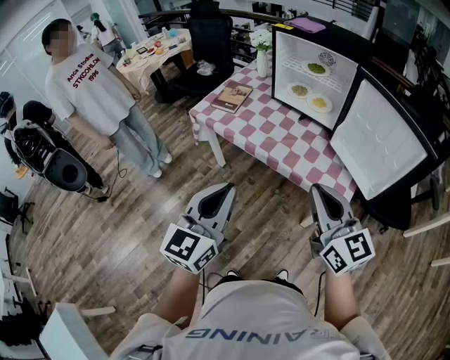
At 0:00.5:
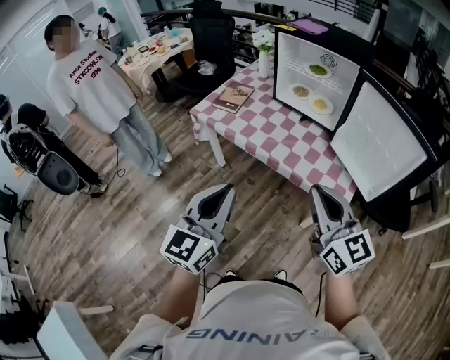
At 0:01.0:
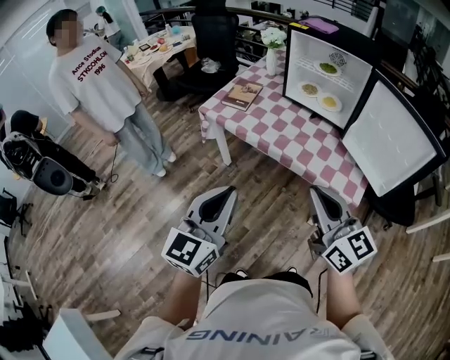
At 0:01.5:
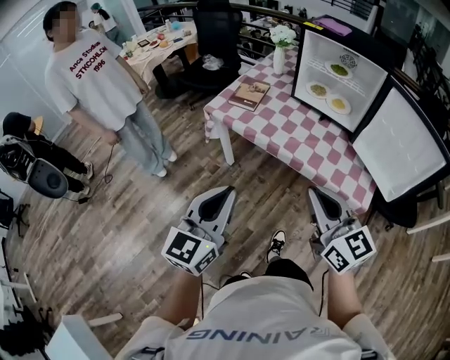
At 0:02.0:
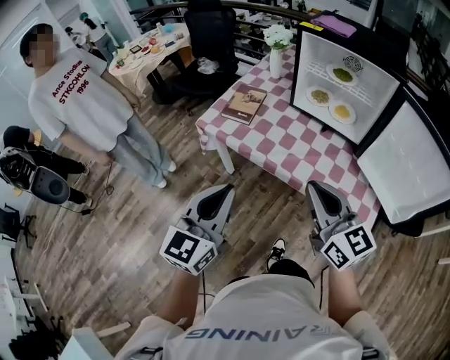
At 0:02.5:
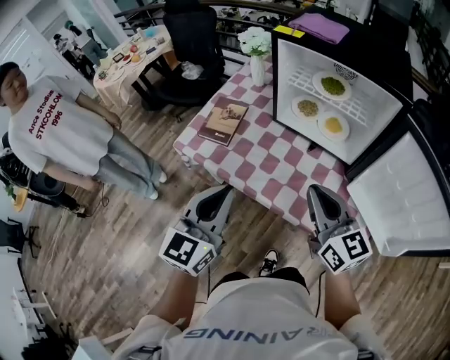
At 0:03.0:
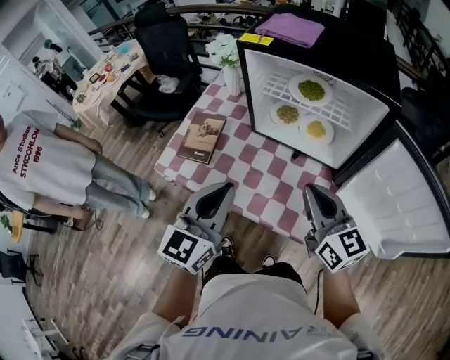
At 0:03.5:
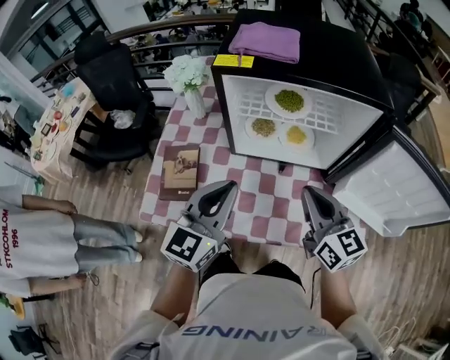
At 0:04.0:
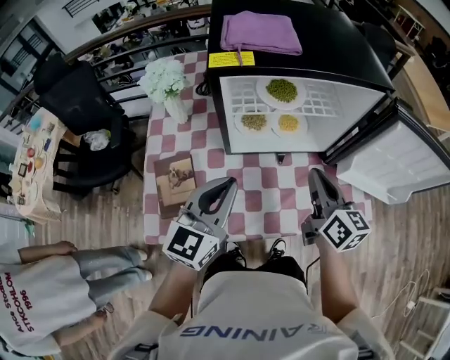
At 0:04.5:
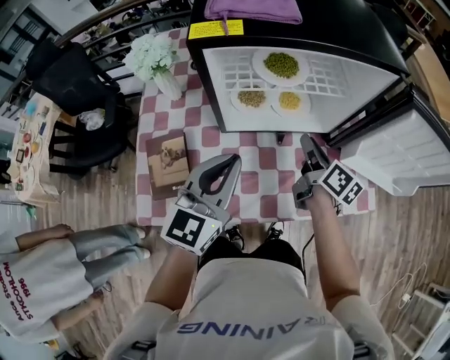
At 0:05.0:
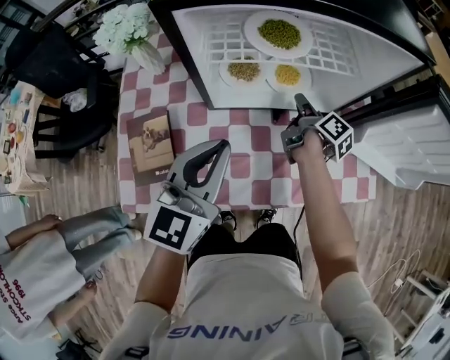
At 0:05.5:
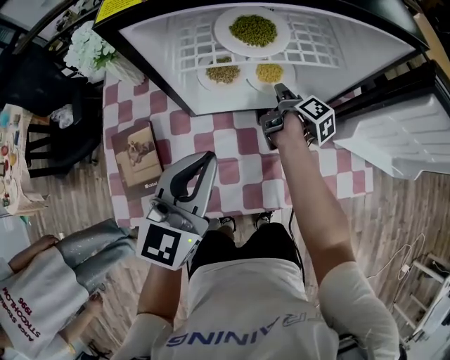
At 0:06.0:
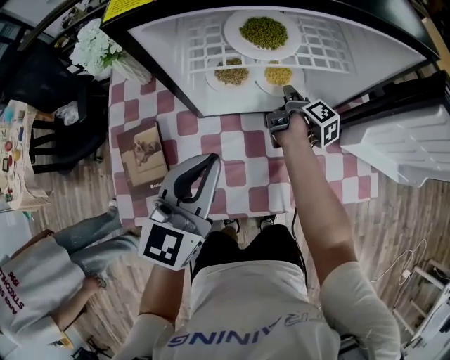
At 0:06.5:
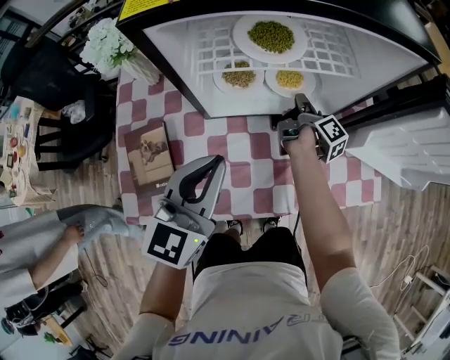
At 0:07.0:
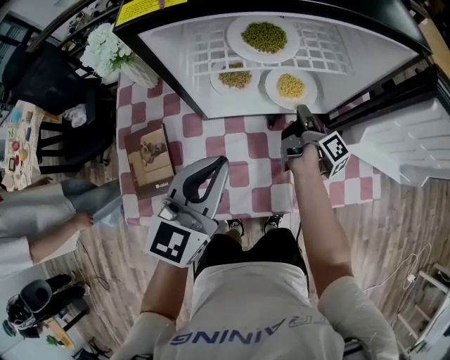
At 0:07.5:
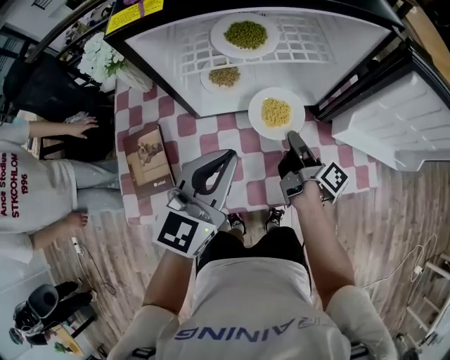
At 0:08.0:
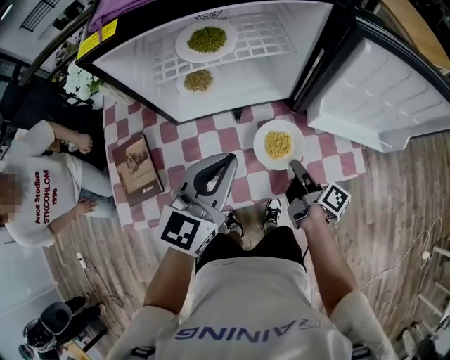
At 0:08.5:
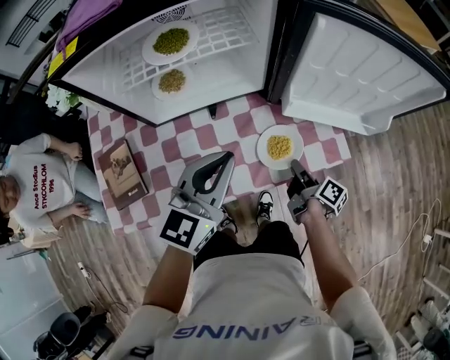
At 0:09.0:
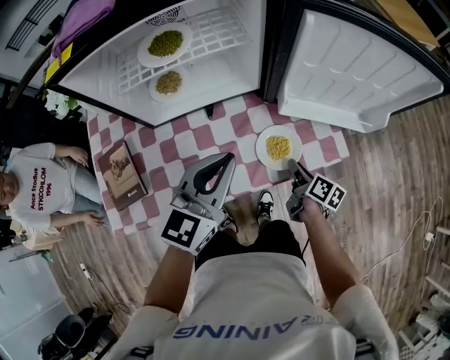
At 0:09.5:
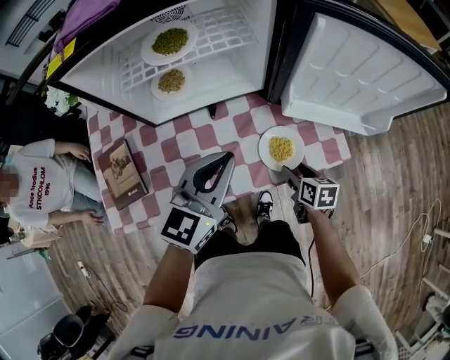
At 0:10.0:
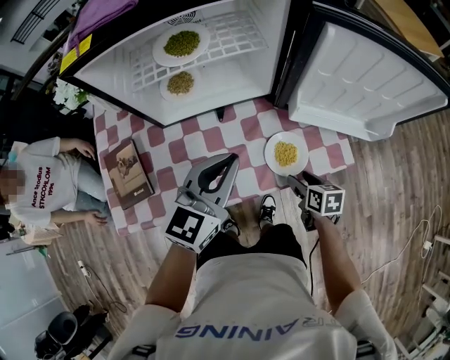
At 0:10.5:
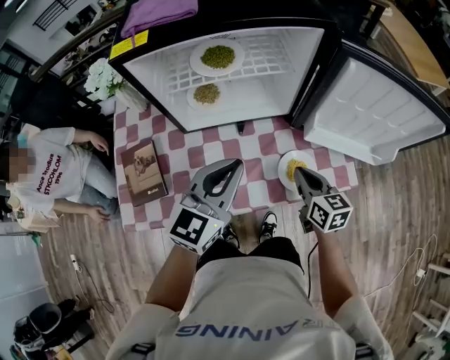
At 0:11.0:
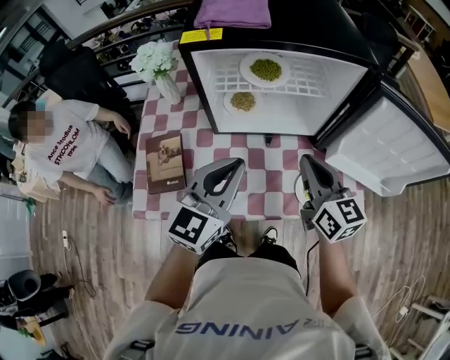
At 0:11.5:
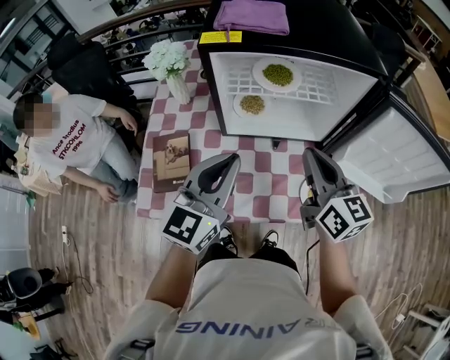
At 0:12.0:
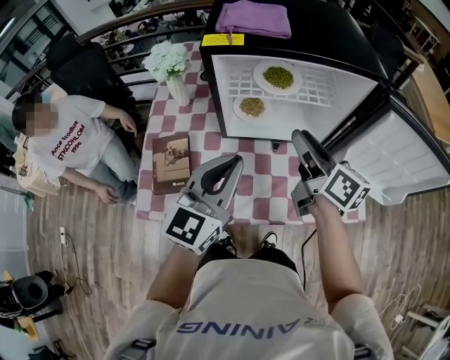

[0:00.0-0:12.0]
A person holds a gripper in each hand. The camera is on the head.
0:00.0 to 0:02.0: The two grippers go about 20 cm forward and to the left.
0:02.0 to 0:04.0: The left gripper shifts by approximately 40 cm, and rotates some 40 degrees. The right gripper ends up approximately 30 cm from where it was, and changes its angle by approximately 60 degrees.
0:04.0 to 0:06.0: The left gripper goes approximately 5 cm downward, while the right gripper goes approximately 30 cm downward and forward, rolls clockwise, seen from behind, by roughly 60 degrees, and opens its fingers.
0:06.0 to 0:08.0: The left gripper is displaced to the right by roughly 10 cm. Meanwhile the right gripper shifts roughly 25 cm backward and to the right, and closes up.
0:08.0 to 0:10.0: The right gripper goes roughly 10 cm downward, to the right and backward, angles its fingers downward, by roughly 30 degrees, and opens. The left gripper moves to the right, roughly 5 cm.
0:10.0 to 0:12.0: The left gripper shifts approximately 20 cm to the left and upward, and rotates roughly 20 degrees. The right gripper is displaced upward, to the left and forward by roughly 40 cm, tips its fingers upward by about 40 degrees, and closes its fingers.

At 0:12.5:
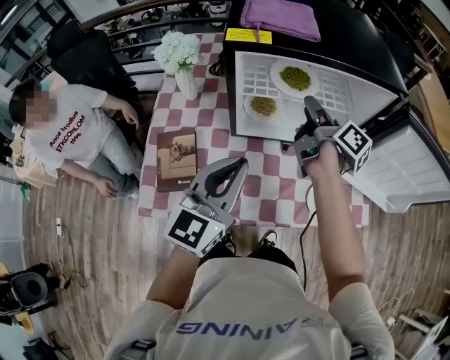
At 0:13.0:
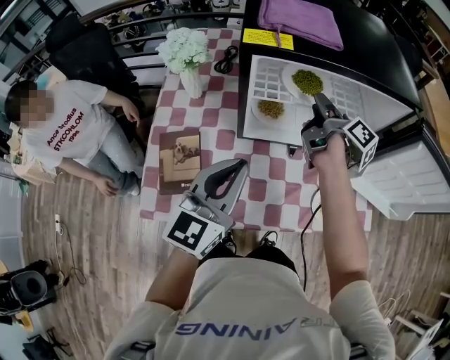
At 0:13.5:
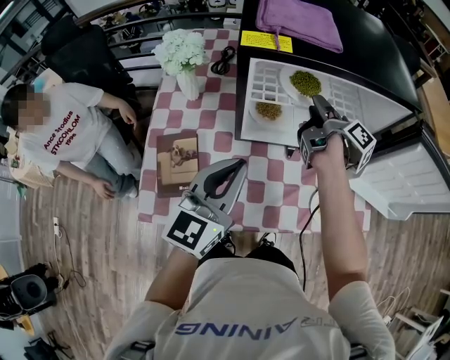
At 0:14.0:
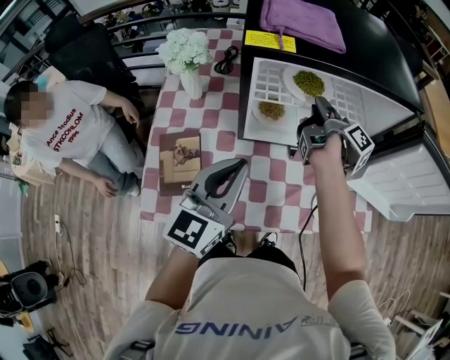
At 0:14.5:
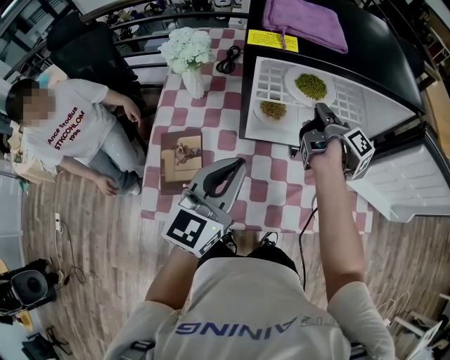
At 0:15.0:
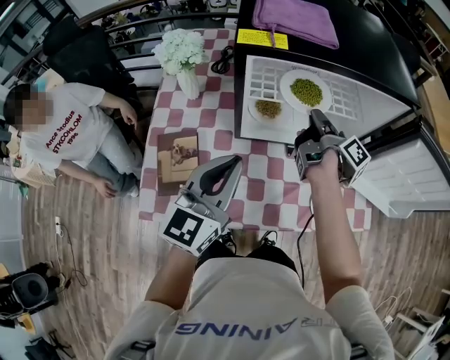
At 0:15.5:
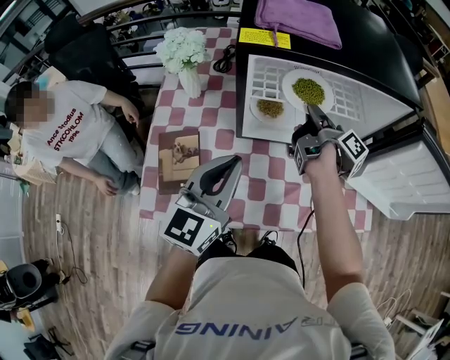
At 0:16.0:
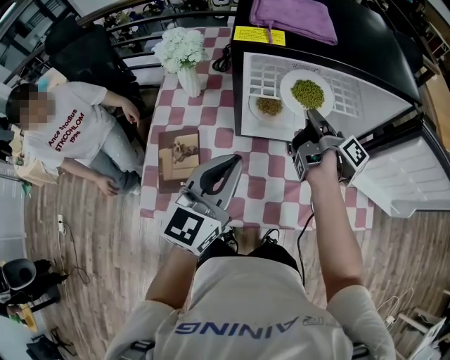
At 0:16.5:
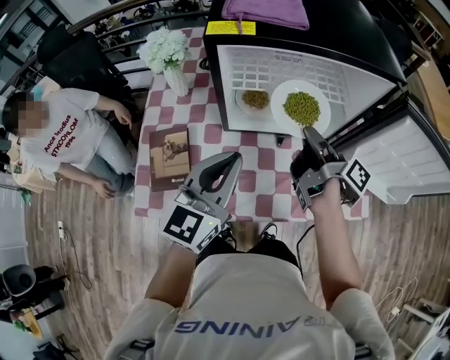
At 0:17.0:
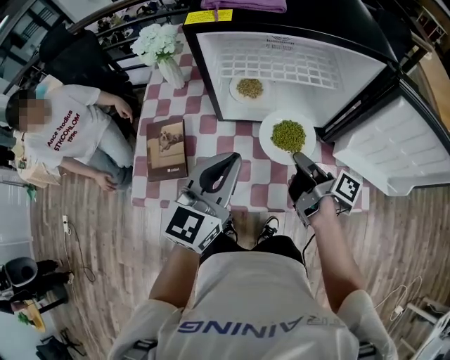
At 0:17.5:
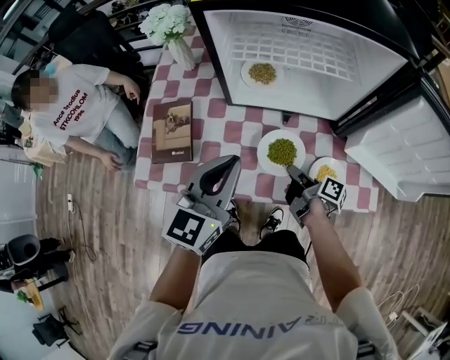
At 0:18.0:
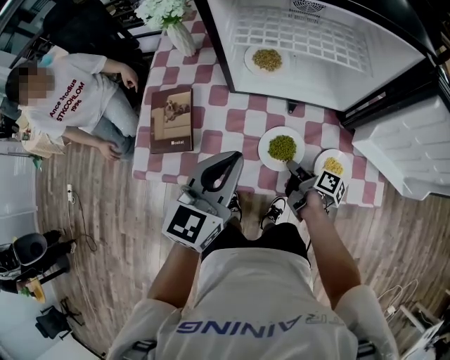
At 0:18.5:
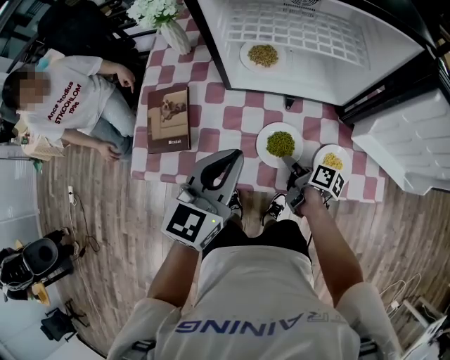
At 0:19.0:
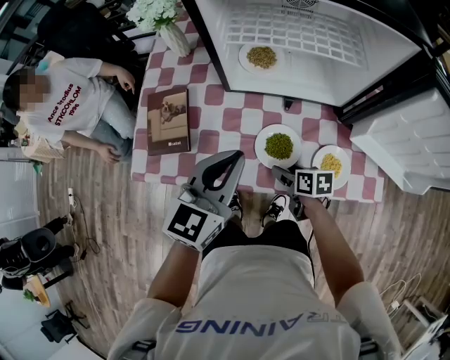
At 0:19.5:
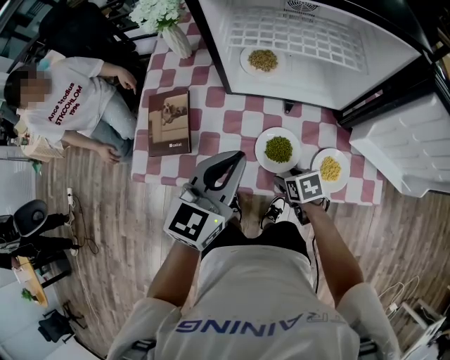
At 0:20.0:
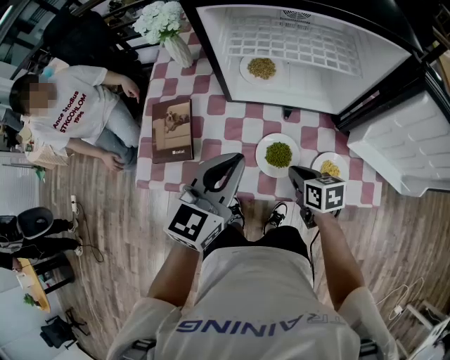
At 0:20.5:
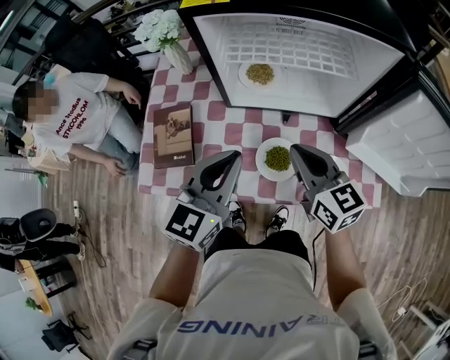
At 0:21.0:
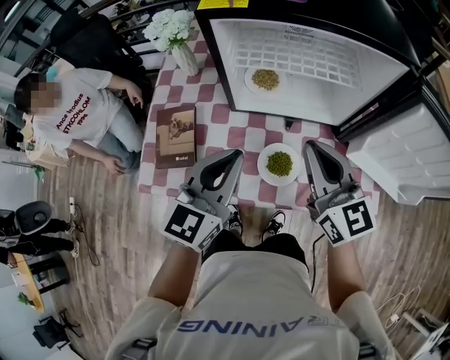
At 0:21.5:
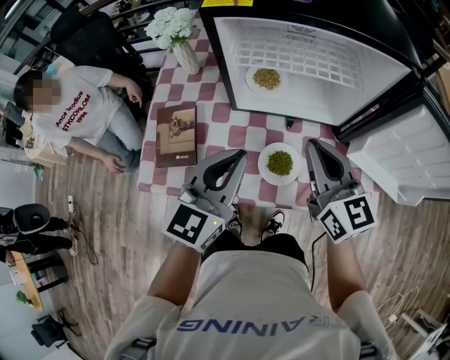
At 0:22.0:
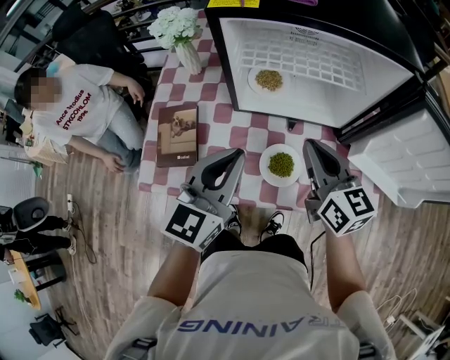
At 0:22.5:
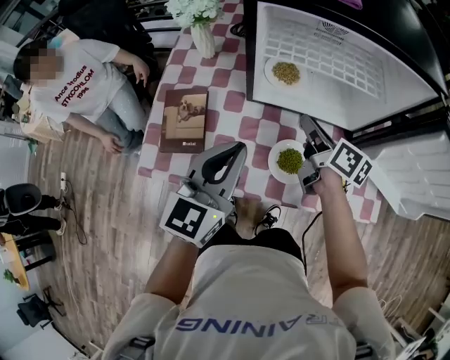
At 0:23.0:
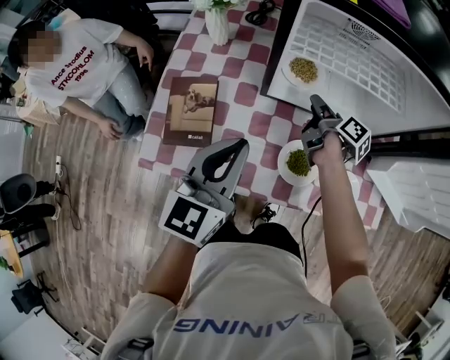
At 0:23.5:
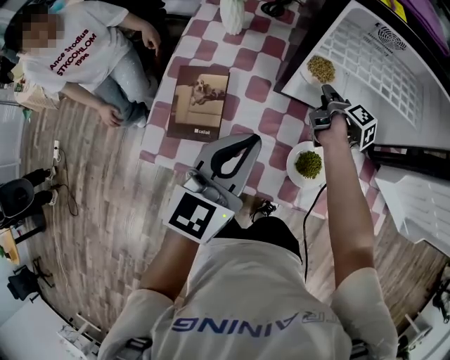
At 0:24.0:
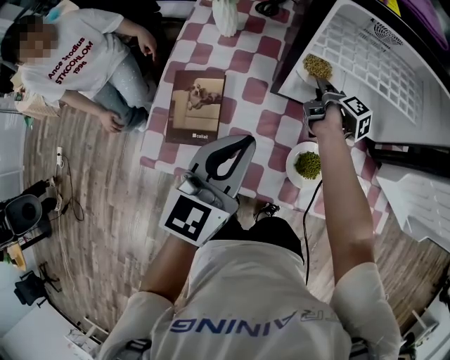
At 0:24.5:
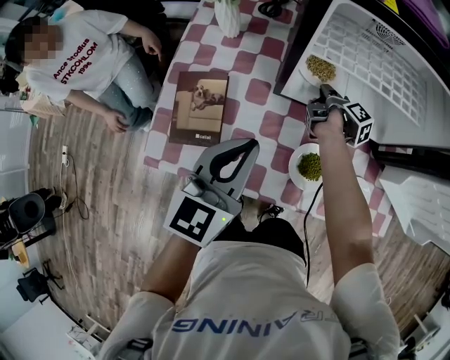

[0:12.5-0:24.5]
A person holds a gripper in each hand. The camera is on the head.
0:12.5 to 0:14.5: The right gripper moves roughly 5 cm, and closes.
0:14.5 to 0:16.5: The right gripper heads backward, covering approximately 10 cm.
0:16.5 to 0:18.5: The right gripper travels downward and backward by approximately 30 cm, rotates some 40 degrees, and opens up, while the left gripper heads downward and backward, covering roughly 10 cm.
0:18.5 to 0:20.5: The right gripper goes about 25 cm upward, rotates around the line of its fingers by about 70 degrees, counterclockwise from behind, and closes up.
0:20.5 to 0:22.5: The right gripper shifts some 10 cm forward and downward, and turns by approximately 40 degrees. Meanwhile the left gripper goes approximately 5 cm to the left.
0:22.5 to 0:24.5: The left gripper shifts by roughly 5 cm; the right gripper is displaced downward and forward by roughly 20 cm, and rotates around the line of its fingers by some 40 degrees, clockwise from behind.

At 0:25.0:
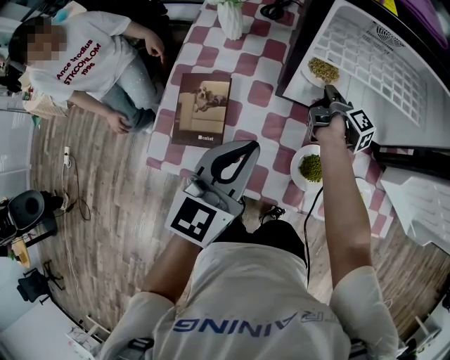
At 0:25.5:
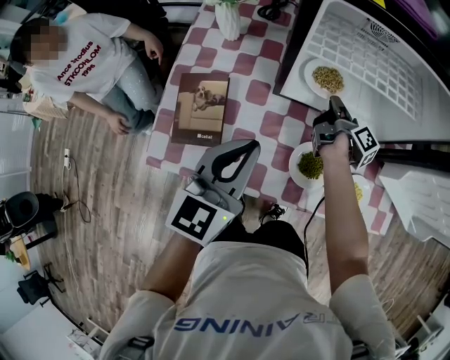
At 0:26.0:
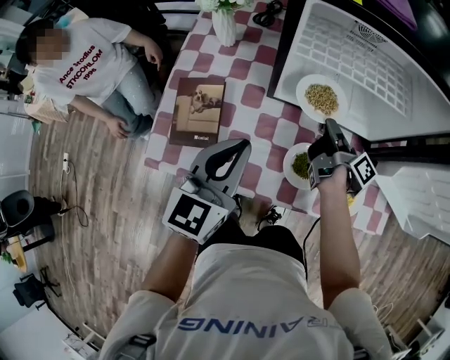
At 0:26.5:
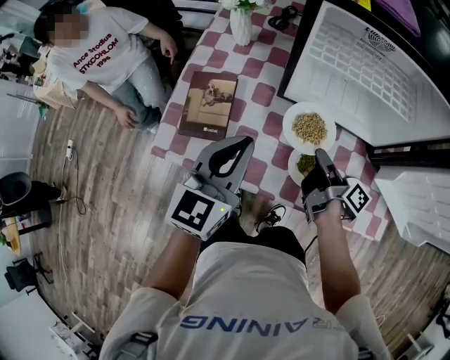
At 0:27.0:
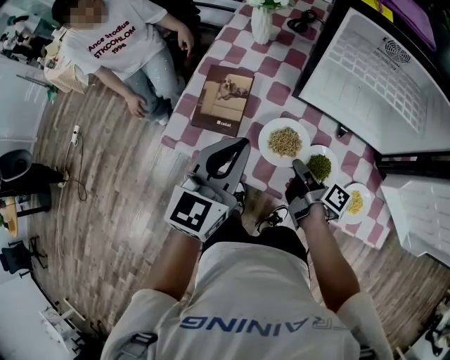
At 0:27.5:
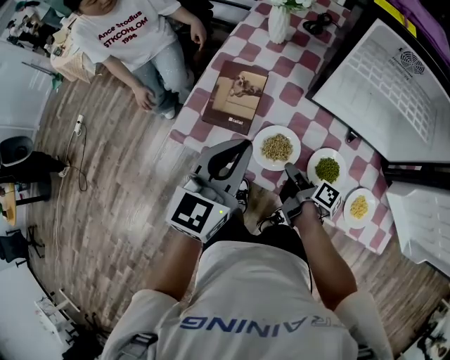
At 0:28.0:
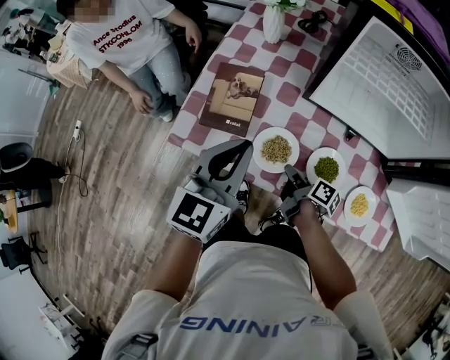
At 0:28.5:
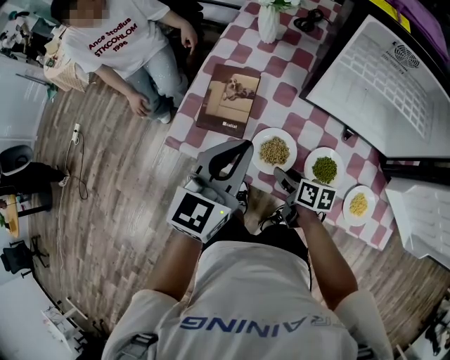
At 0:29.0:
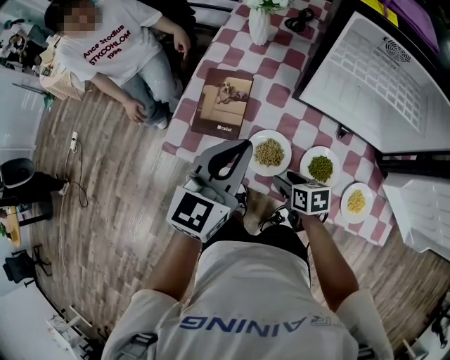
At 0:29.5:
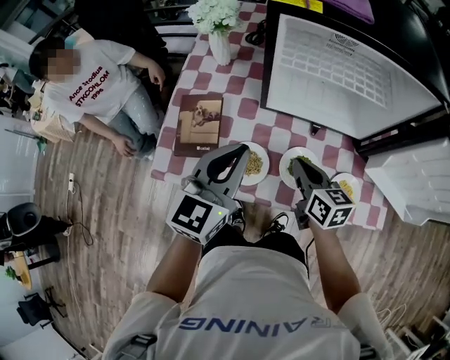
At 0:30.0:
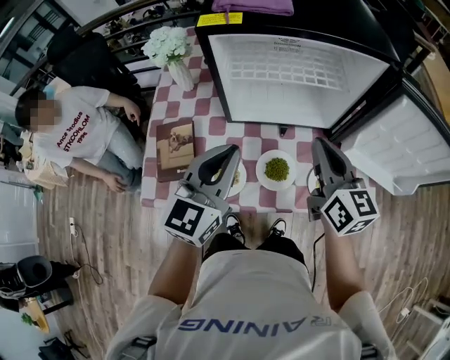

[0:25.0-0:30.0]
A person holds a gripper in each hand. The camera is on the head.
0:25.0 to 0:27.5: The right gripper goes upward and returns, approximately 5 cm each way, and changes its angle by about 40 degrees, while the left gripper changes place by some 10 cm.
0:27.5 to 0:30.0: The right gripper travels upward by about 30 cm, rotates around the line of its fingers by about 60 degrees, counterclockwise from behind, and opens and closes again, while the left gripper ends up roughly 15 cm from where it was, and swivels some 20 degrees.
